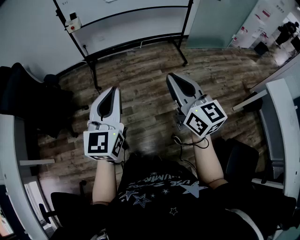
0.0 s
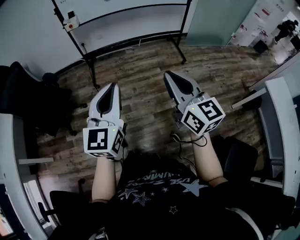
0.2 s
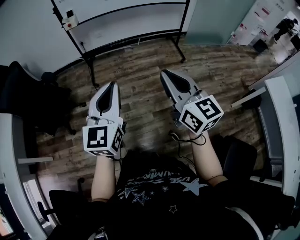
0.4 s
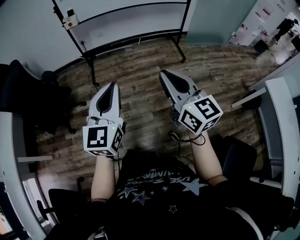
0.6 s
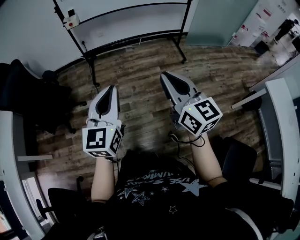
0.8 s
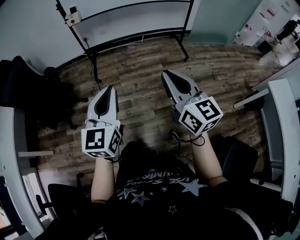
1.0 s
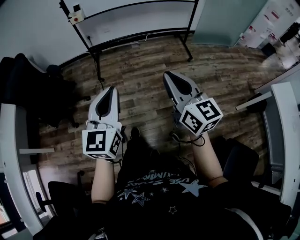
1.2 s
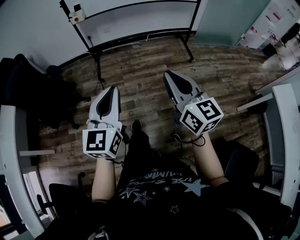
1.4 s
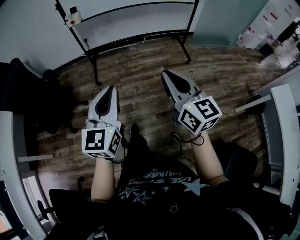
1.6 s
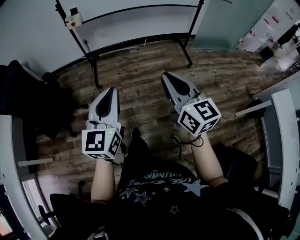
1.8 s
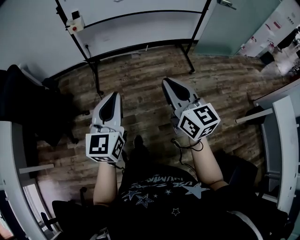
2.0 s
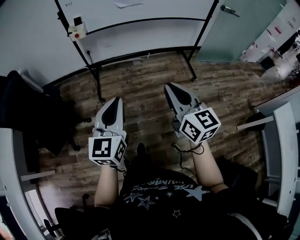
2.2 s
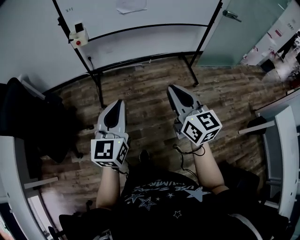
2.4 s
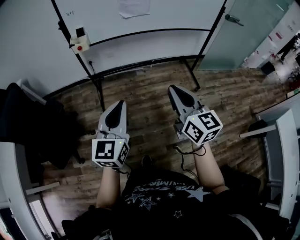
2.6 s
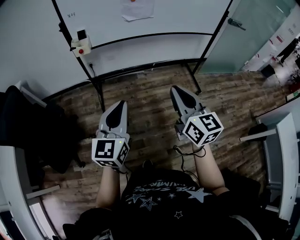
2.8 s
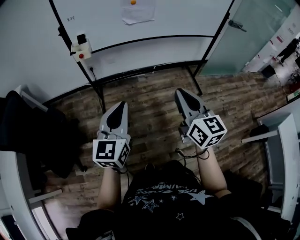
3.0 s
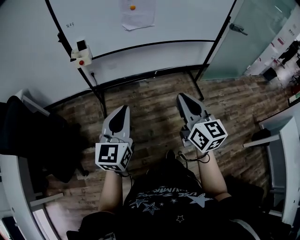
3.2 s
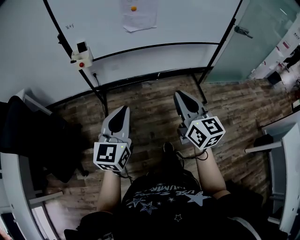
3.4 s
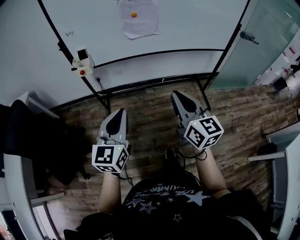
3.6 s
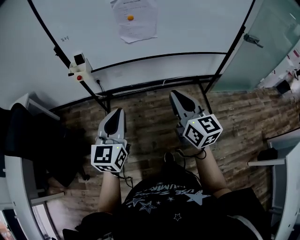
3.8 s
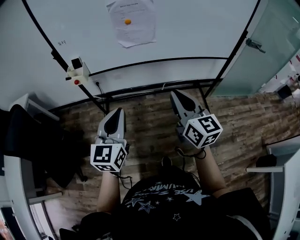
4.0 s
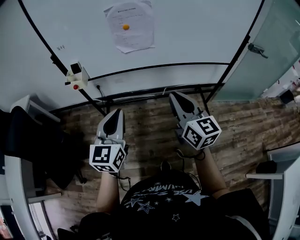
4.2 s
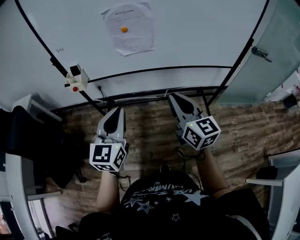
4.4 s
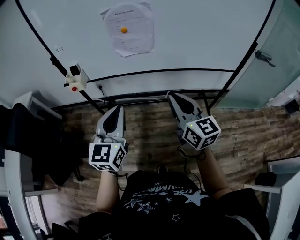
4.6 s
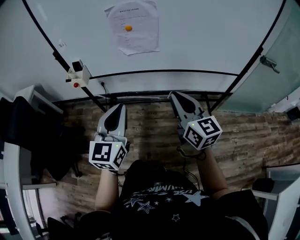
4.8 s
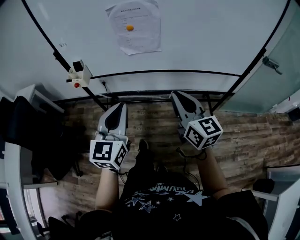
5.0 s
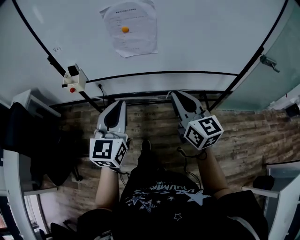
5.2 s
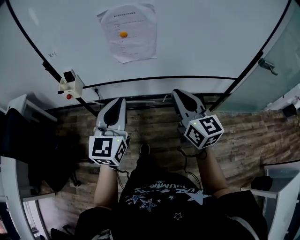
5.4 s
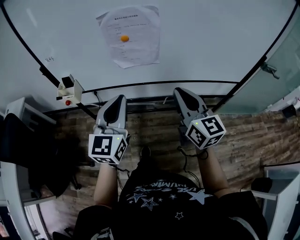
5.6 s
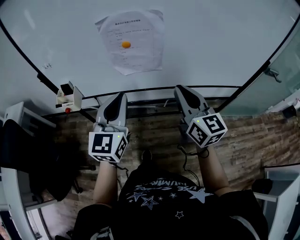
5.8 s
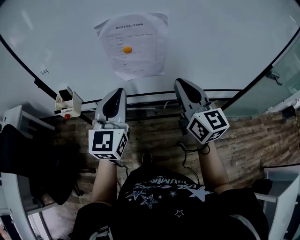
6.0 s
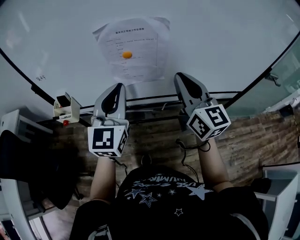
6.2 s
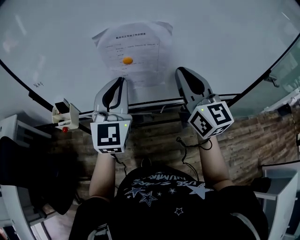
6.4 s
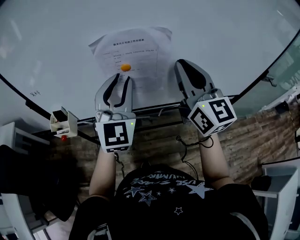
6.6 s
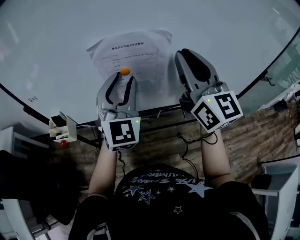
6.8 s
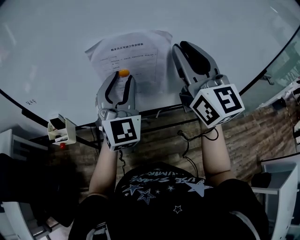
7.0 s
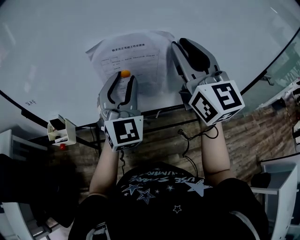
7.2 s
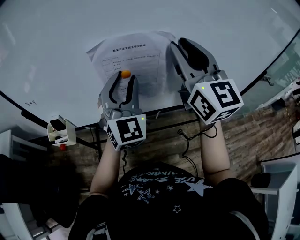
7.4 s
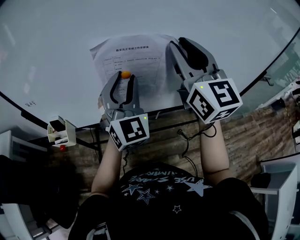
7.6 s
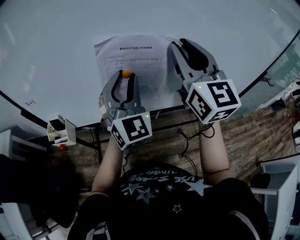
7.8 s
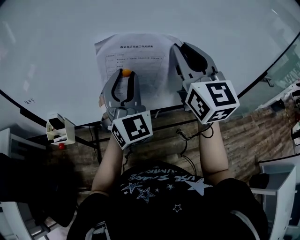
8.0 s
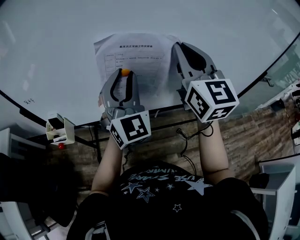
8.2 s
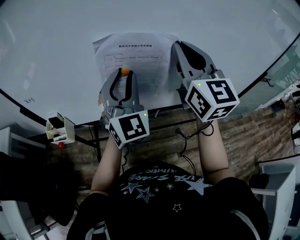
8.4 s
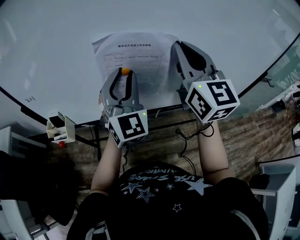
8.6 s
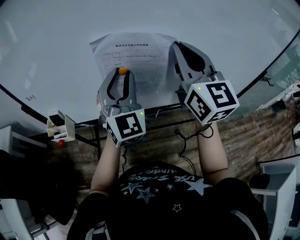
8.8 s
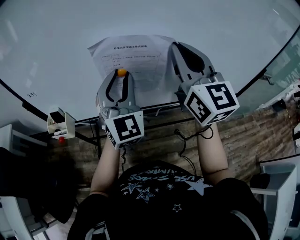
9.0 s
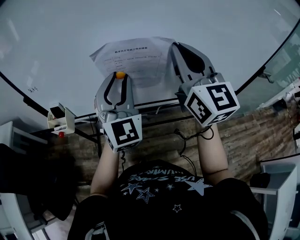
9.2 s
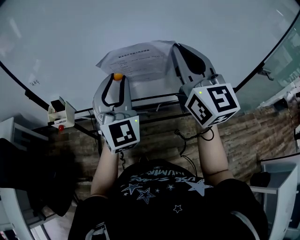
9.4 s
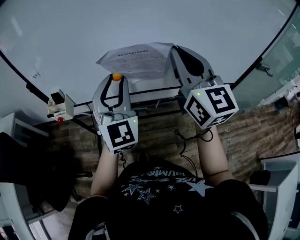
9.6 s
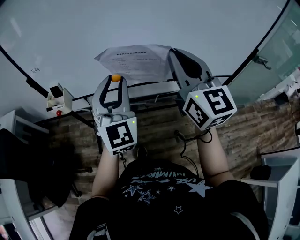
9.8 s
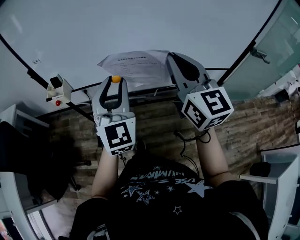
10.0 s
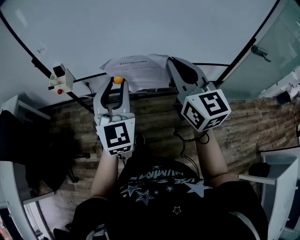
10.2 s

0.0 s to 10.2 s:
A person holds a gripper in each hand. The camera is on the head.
0.0 to 1.4 s: The grippers move only a little.
1.4 to 3.0 s: Both grippers travel together forward, approximately 35 cm.
3.0 to 4.4 s: Both grippers move forward and to the right, about 25 cm.
4.4 to 5.8 s: Both grippers travel together forward, some 20 cm.
5.8 to 7.2 s: The right gripper moves upward and forward, roughly 20 cm, and rotates roughly 20 degrees. The left gripper moves forward, about 15 cm, turns by approximately 20 degrees, and opens its fingers.
7.2 to 8.8 s: The grippers make only small movements.
8.8 to 10.2 s: The grippers both shift backward by roughly 25 cm.

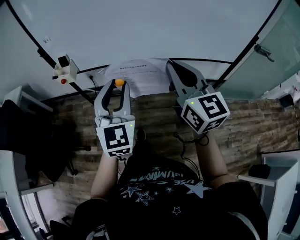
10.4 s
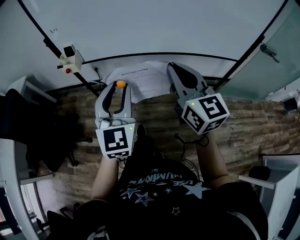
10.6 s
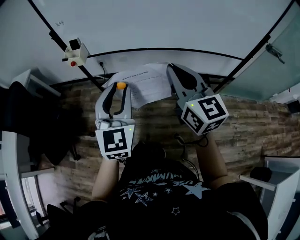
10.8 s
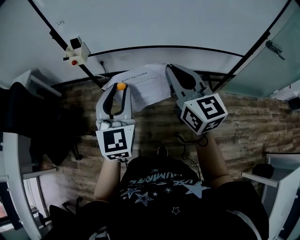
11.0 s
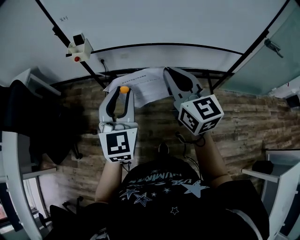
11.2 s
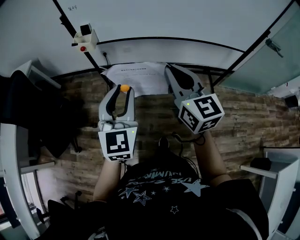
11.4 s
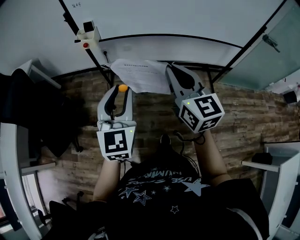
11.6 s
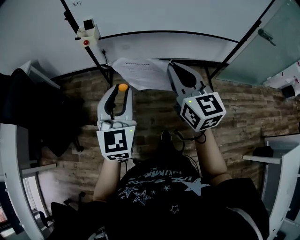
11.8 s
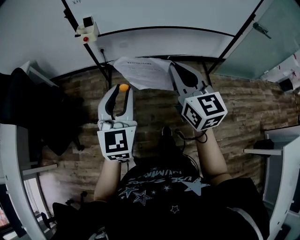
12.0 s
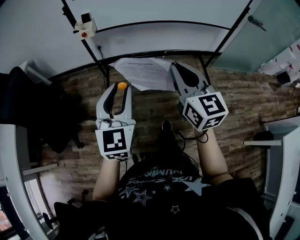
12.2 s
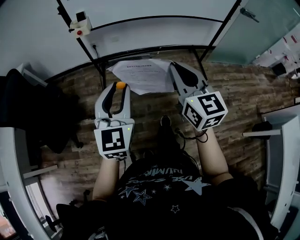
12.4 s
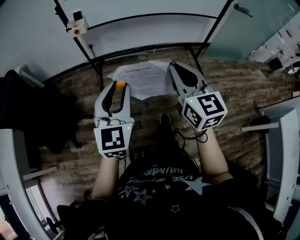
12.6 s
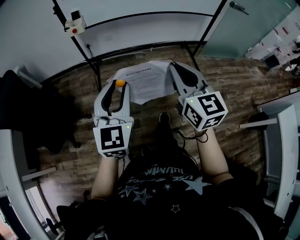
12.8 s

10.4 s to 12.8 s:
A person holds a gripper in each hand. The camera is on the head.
10.4 to 11.6 s: The left gripper moves backward and to the left, about 20 cm, while the right gripper goes roughly 20 cm to the left and backward.
11.6 to 12.8 s: The two grippers go roughly 20 cm backward.

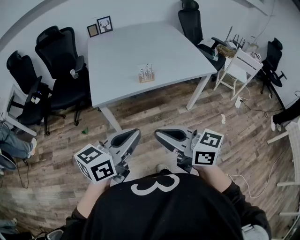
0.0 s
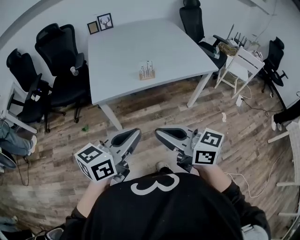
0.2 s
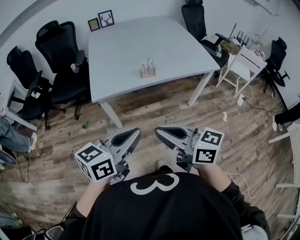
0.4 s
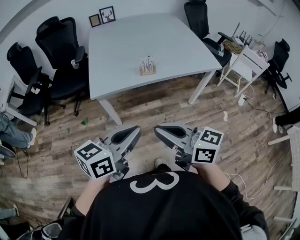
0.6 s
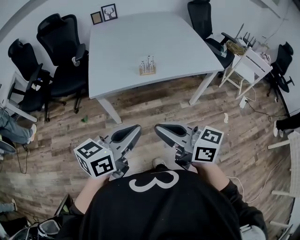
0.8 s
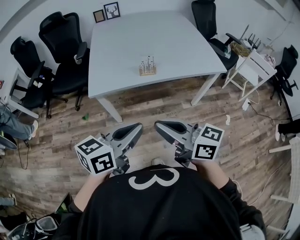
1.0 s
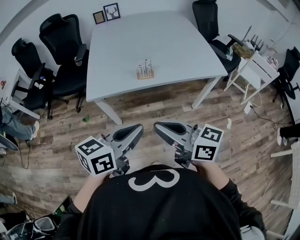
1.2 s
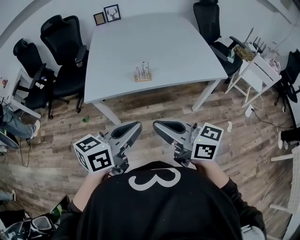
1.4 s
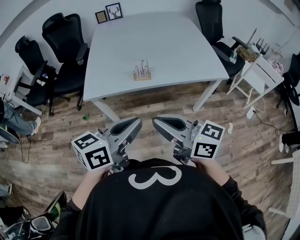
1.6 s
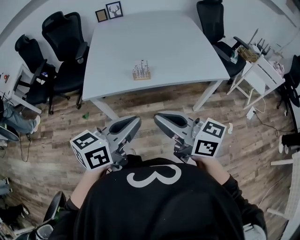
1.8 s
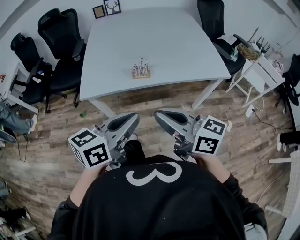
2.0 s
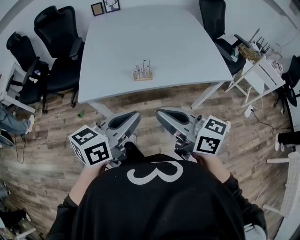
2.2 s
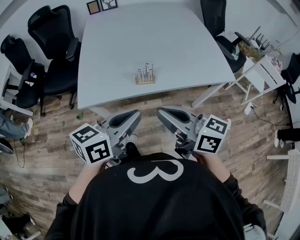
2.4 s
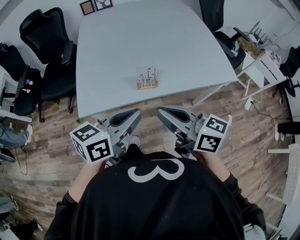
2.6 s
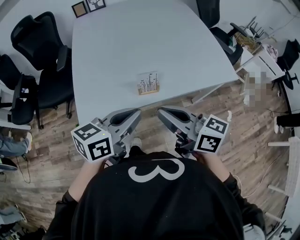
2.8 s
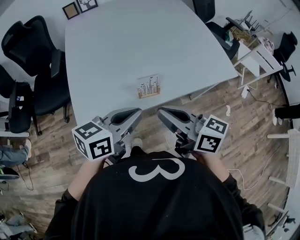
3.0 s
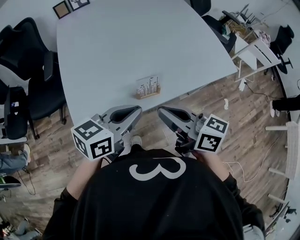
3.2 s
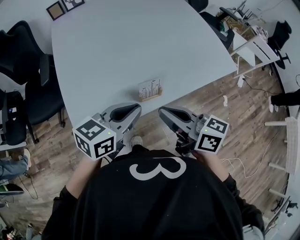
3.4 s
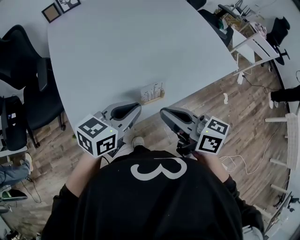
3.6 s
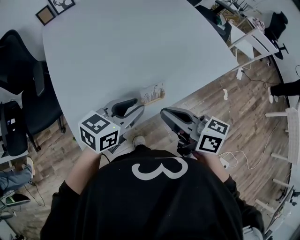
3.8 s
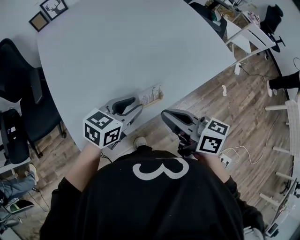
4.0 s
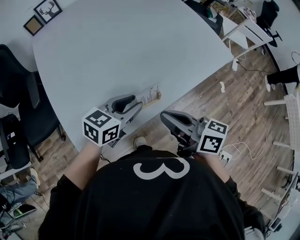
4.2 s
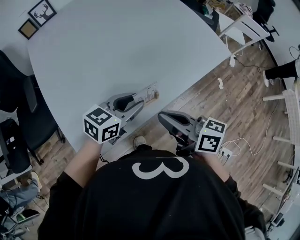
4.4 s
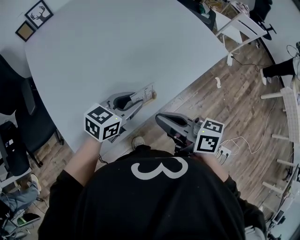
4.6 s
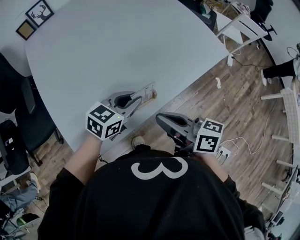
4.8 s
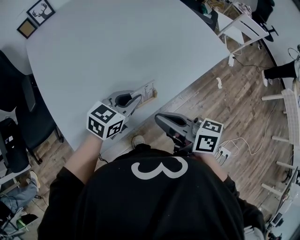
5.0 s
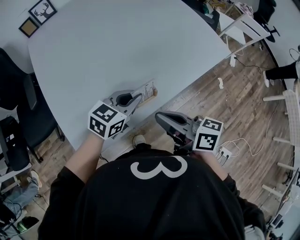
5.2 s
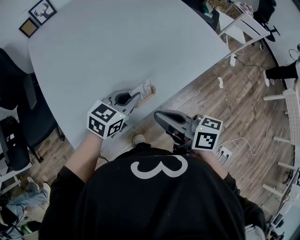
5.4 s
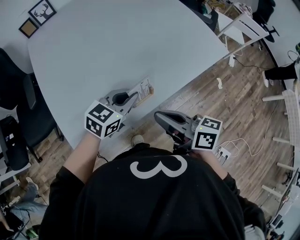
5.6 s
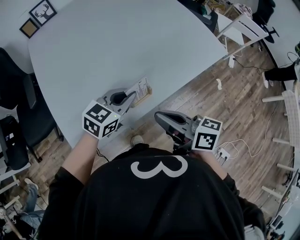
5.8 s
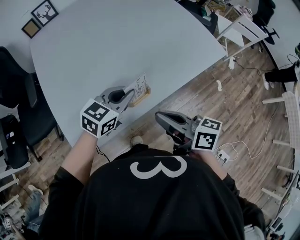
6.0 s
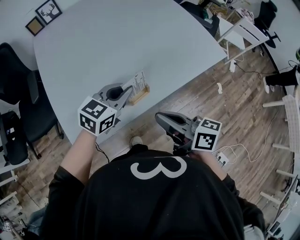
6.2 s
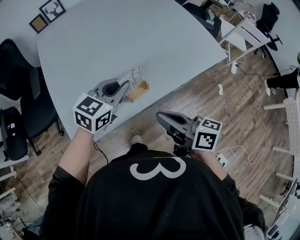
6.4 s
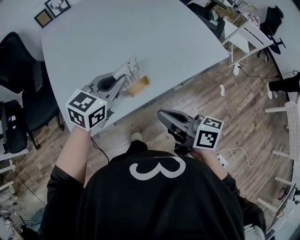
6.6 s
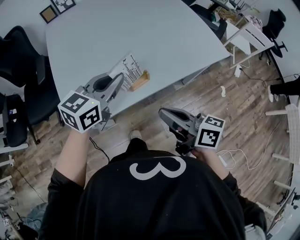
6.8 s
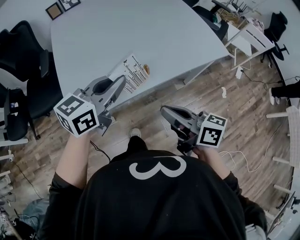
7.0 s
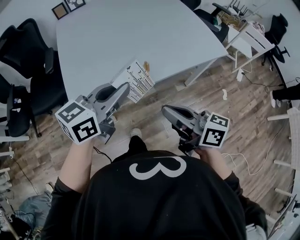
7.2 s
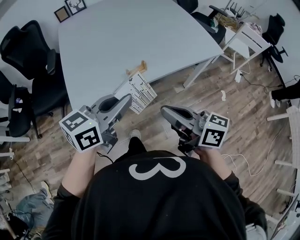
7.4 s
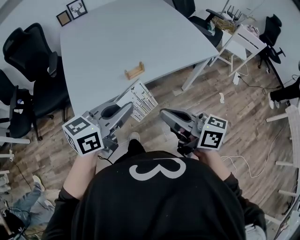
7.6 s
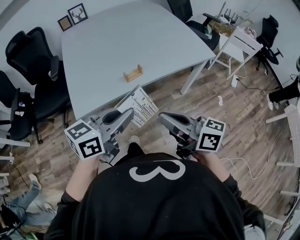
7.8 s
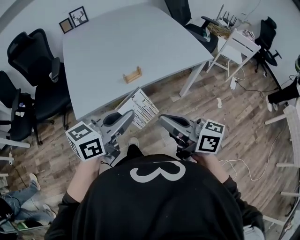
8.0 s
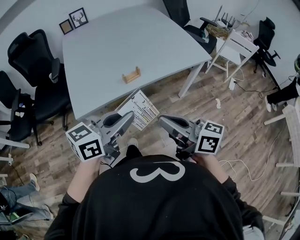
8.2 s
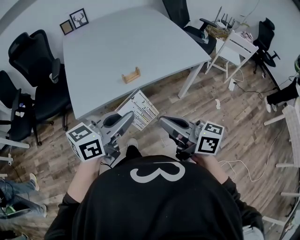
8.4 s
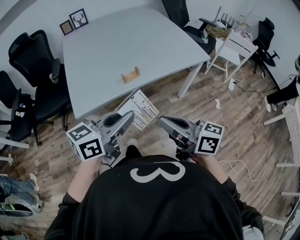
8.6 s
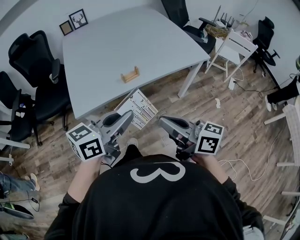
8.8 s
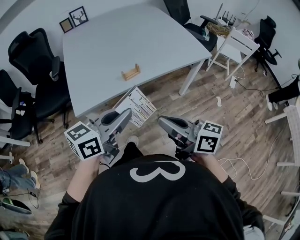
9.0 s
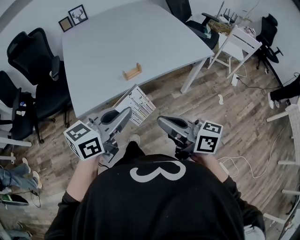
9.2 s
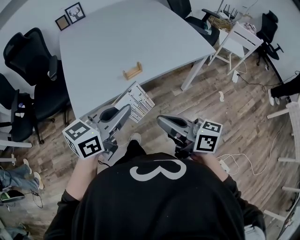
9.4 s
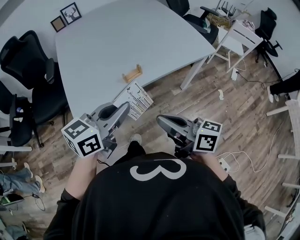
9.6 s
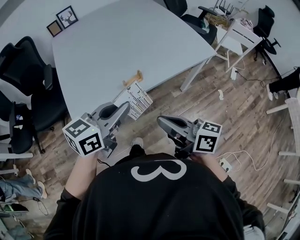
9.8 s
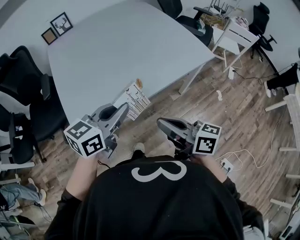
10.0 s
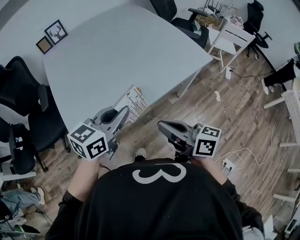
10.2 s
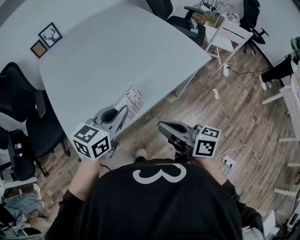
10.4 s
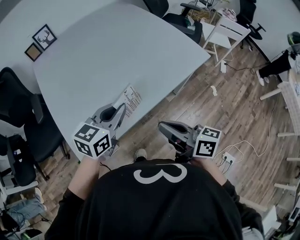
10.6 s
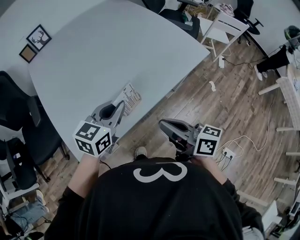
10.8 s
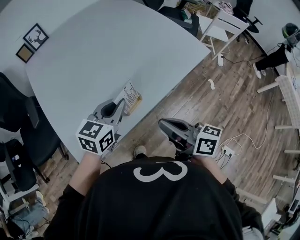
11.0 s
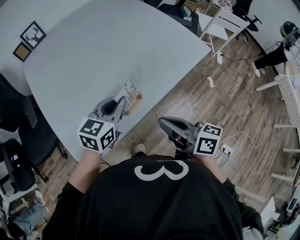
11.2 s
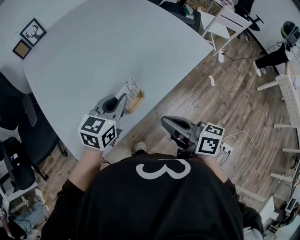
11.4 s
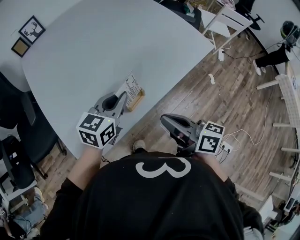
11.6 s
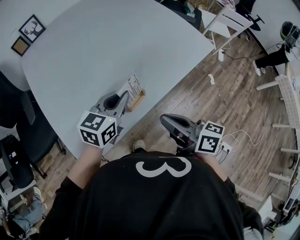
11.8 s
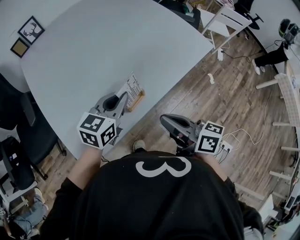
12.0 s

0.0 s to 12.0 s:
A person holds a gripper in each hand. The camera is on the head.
0.0 to 1.6 s: Both grippers travel together to the right and forward, about 15 cm.
1.6 to 3.0 s: The grippers both shift forward by roughly 20 cm.
3.0 to 4.4 s: The right gripper goes approximately 10 cm downward and forward, and swivels some 20 degrees. The left gripper goes approximately 15 cm forward and downward, turns by some 20 degrees, and opens up.
4.4 to 6.0 s: The left gripper closes up.
6.0 to 7.6 s: The right gripper heads backward, covering roughly 20 cm. Meanwhile the left gripper heads backward and upward, covering approximately 30 cm, and turns by approximately 20 degrees.
7.6 to 9.0 s: The grippers make only small movements.
9.0 to 10.4 s: Both grippers move forward, approximately 20 cm.
10.4 to 12.0 s: The left gripper heads forward and downward, covering about 10 cm; the right gripper shifts by approximately 5 cm.
